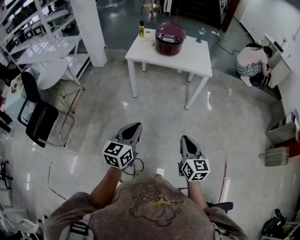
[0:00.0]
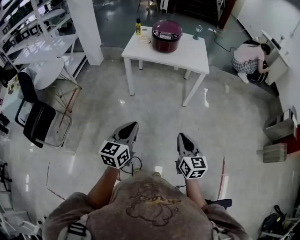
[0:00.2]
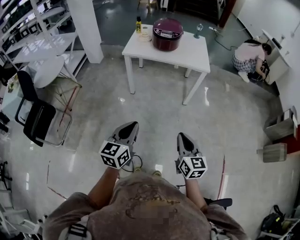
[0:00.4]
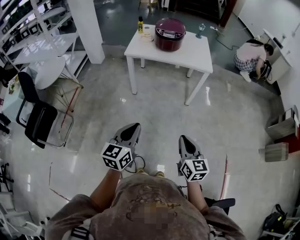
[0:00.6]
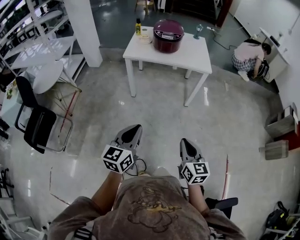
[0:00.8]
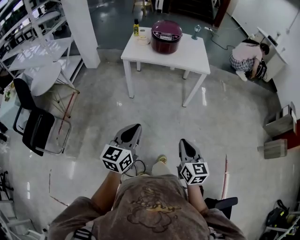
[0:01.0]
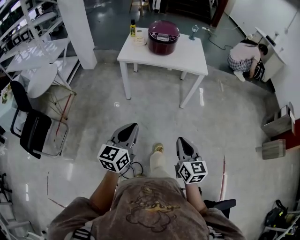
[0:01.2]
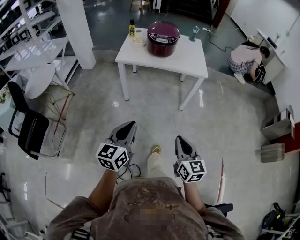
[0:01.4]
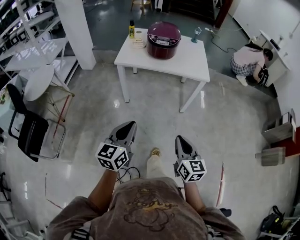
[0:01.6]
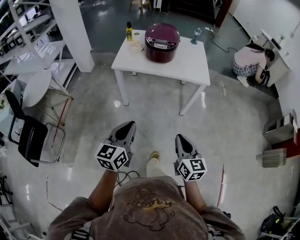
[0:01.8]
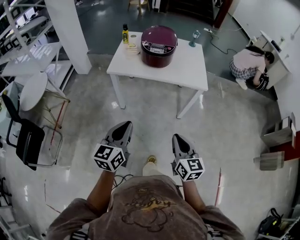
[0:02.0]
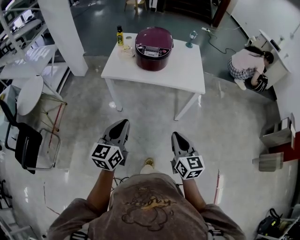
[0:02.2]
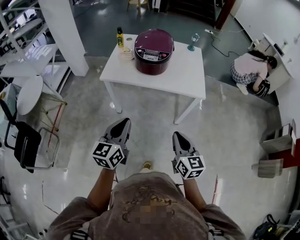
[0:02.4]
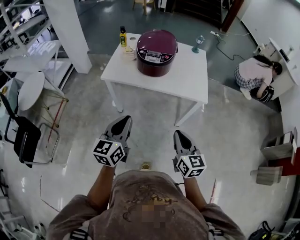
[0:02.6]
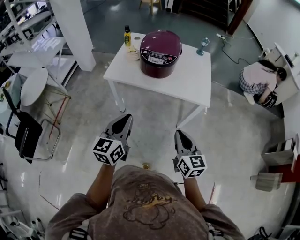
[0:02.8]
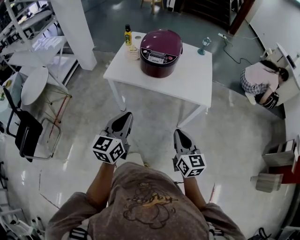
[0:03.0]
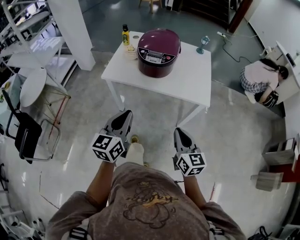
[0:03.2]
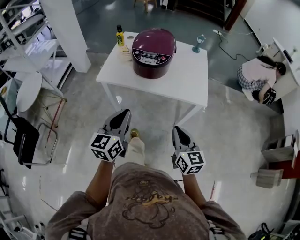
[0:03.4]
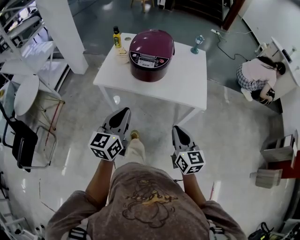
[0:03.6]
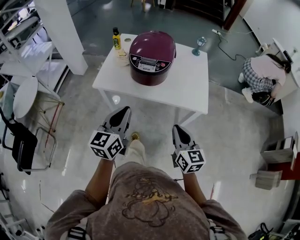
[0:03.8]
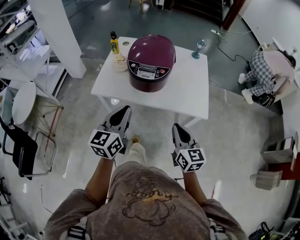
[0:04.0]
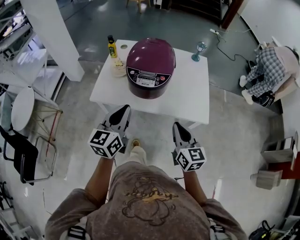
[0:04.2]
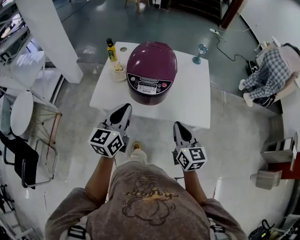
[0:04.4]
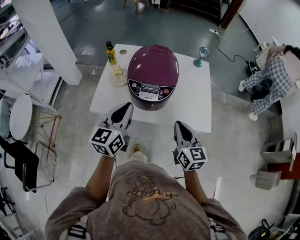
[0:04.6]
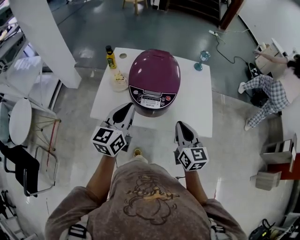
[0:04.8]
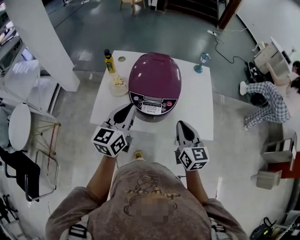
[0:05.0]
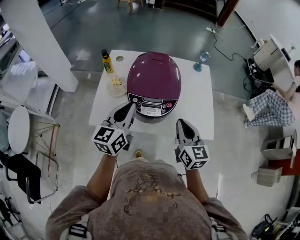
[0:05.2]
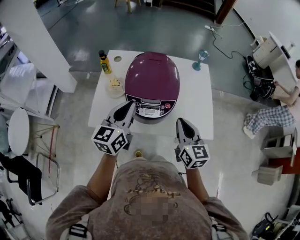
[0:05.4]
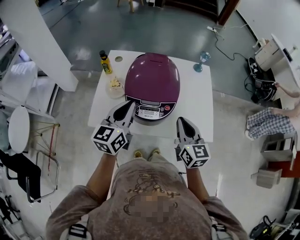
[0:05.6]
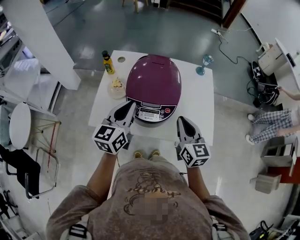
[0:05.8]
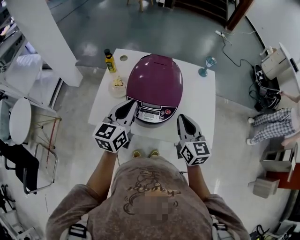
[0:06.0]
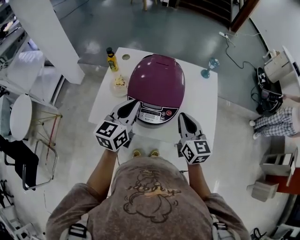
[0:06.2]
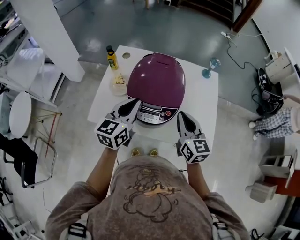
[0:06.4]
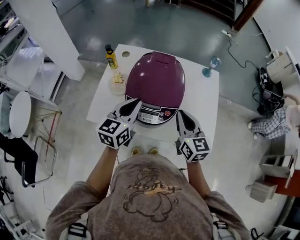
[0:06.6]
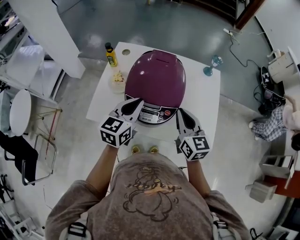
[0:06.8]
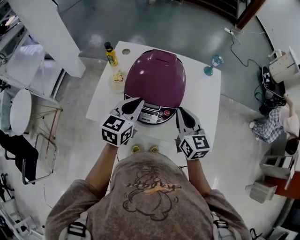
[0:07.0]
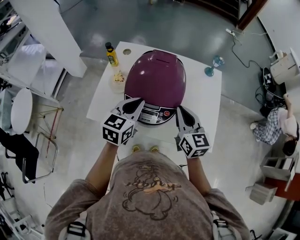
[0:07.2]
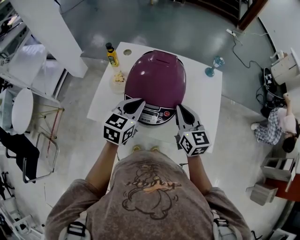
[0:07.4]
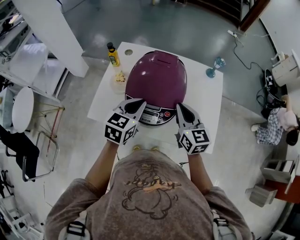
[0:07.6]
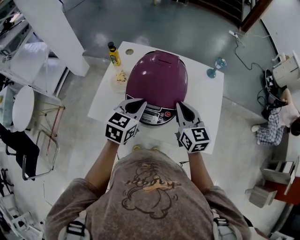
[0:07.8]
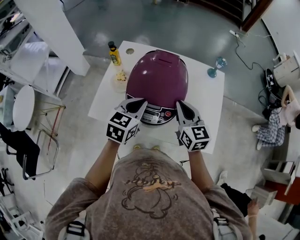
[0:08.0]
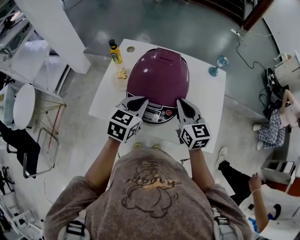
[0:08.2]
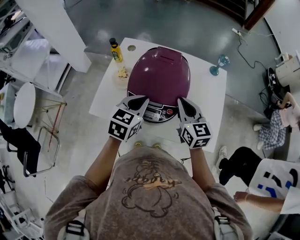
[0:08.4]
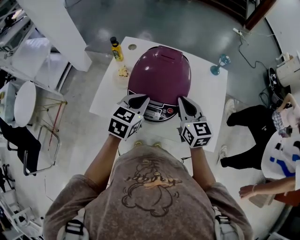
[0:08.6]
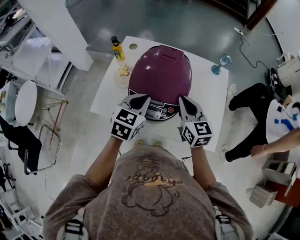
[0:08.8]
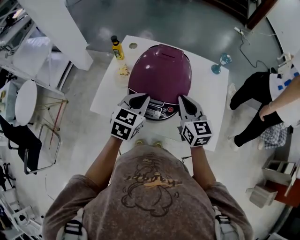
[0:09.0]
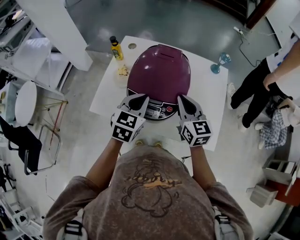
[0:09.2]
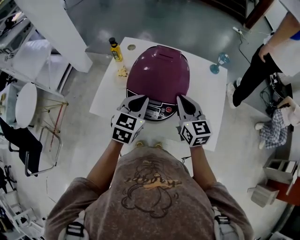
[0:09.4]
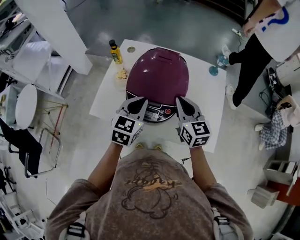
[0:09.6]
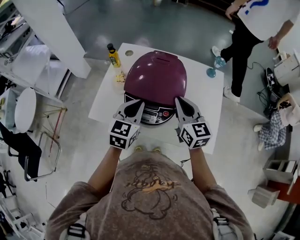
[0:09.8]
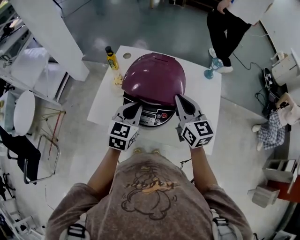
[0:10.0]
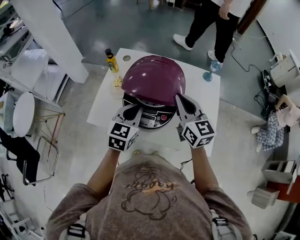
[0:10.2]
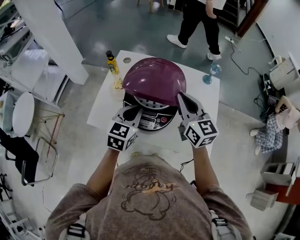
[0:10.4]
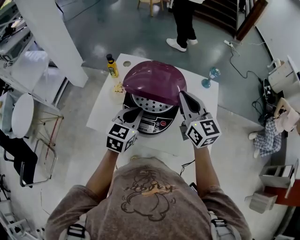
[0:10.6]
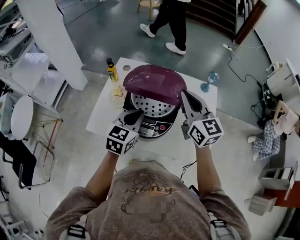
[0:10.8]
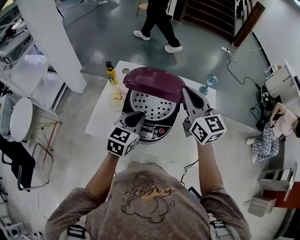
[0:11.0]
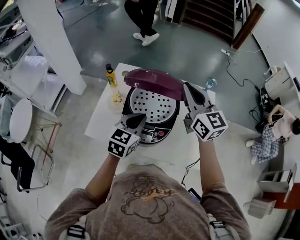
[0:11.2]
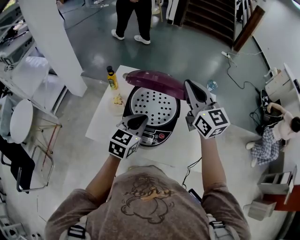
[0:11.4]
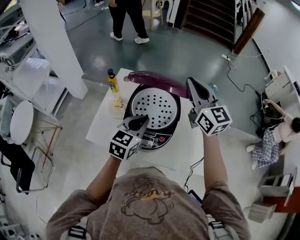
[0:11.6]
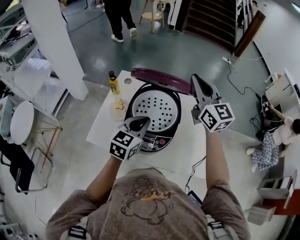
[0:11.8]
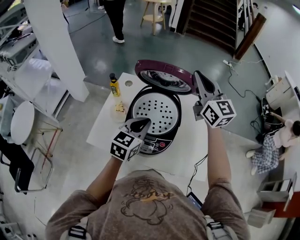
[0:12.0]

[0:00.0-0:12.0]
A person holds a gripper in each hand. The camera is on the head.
0:00.0 to 0:01.6: The grippers both shift forward by about 10 cm.
0:01.6 to 0:03.0: The two grippers go about 25 cm forward.
0:03.0 to 0:04.4: Both grippers travel together forward, approximately 25 cm.
0:04.4 to 0:06.0: Both grippers move forward, about 15 cm.
0:06.0 to 0:07.6: The right gripper goes about 5 cm forward. Meanwhile the left gripper travels downward by about 5 cm, and swivels approximately 20 degrees.
0:07.6 to 0:09.0: The grippers move only a little.
0:09.0 to 0:10.4: The right gripper moves upward, about 10 cm.
0:10.4 to 0:12.0: The left gripper changes place by approximately 5 cm. Meanwhile the right gripper shifts some 20 cm upward and forward.

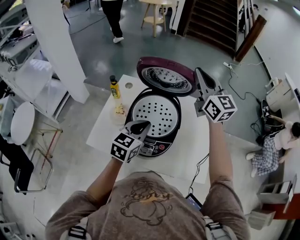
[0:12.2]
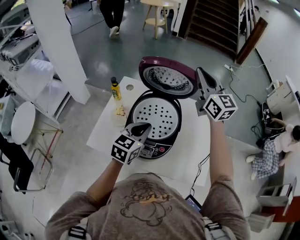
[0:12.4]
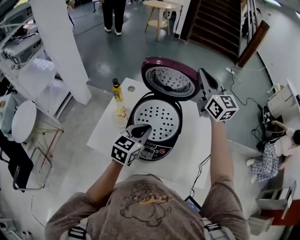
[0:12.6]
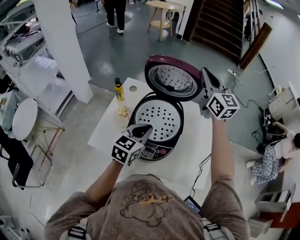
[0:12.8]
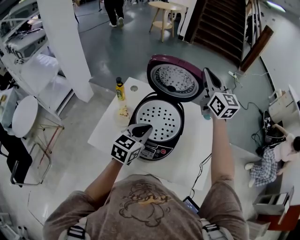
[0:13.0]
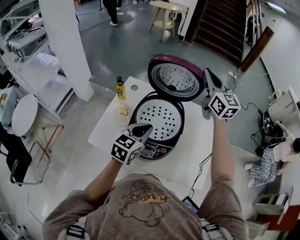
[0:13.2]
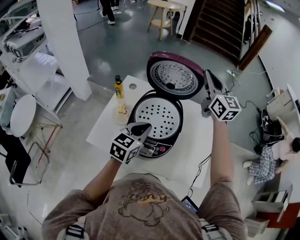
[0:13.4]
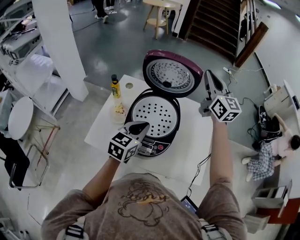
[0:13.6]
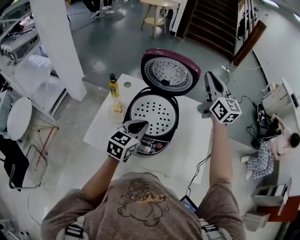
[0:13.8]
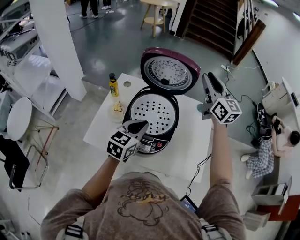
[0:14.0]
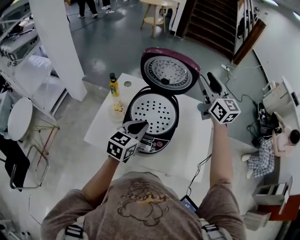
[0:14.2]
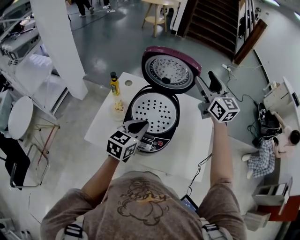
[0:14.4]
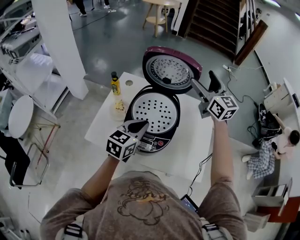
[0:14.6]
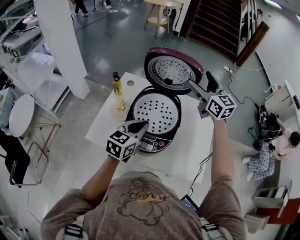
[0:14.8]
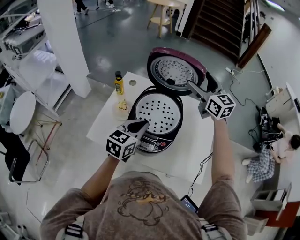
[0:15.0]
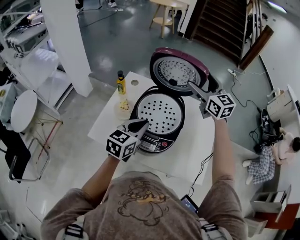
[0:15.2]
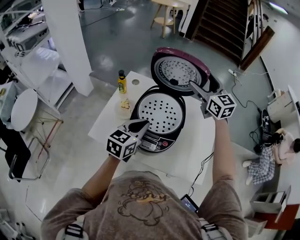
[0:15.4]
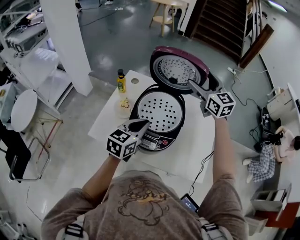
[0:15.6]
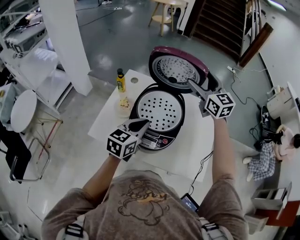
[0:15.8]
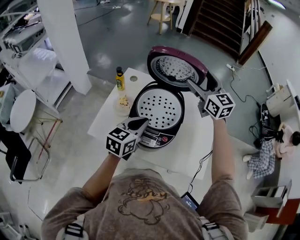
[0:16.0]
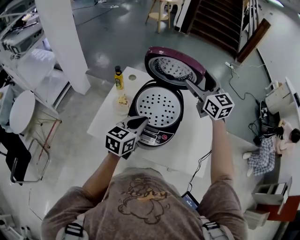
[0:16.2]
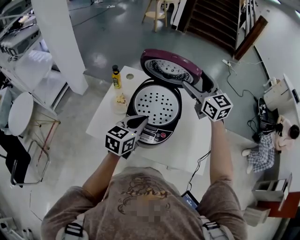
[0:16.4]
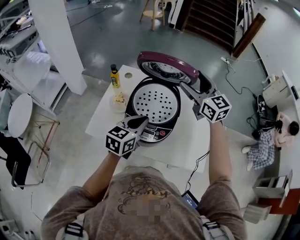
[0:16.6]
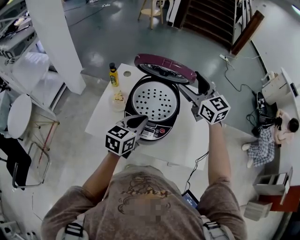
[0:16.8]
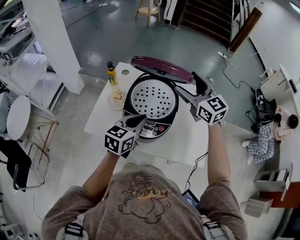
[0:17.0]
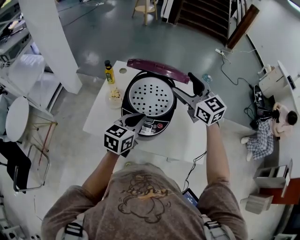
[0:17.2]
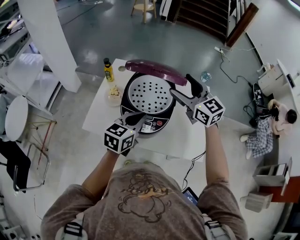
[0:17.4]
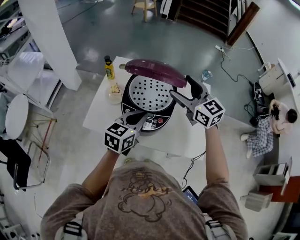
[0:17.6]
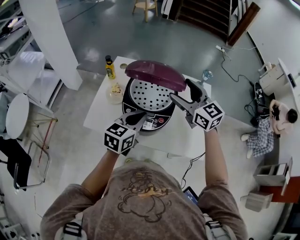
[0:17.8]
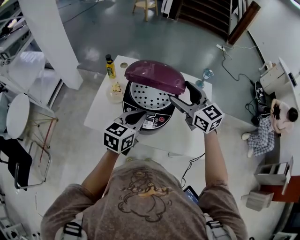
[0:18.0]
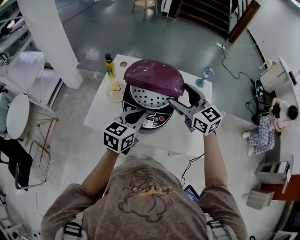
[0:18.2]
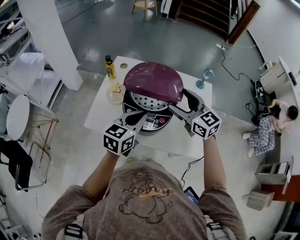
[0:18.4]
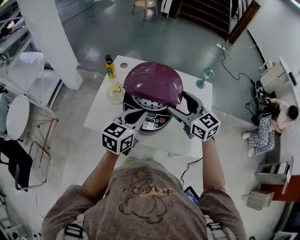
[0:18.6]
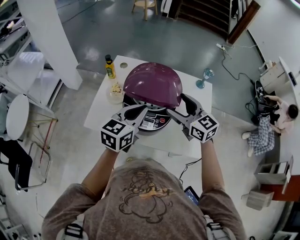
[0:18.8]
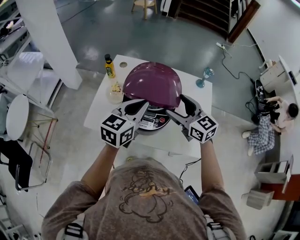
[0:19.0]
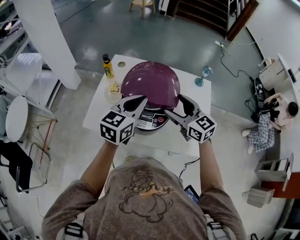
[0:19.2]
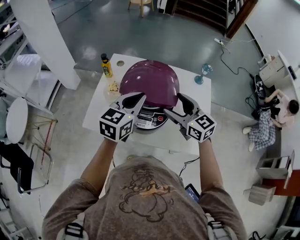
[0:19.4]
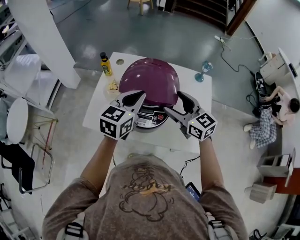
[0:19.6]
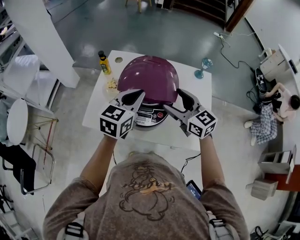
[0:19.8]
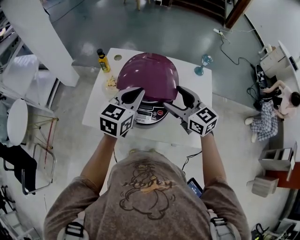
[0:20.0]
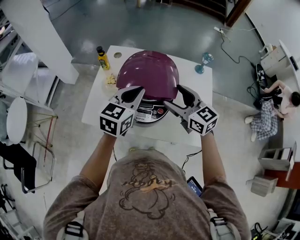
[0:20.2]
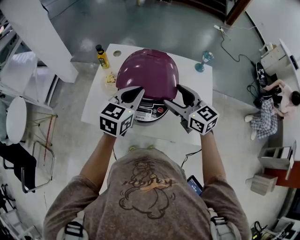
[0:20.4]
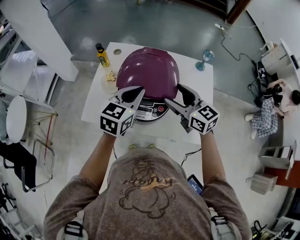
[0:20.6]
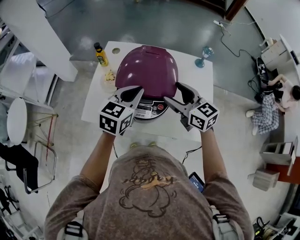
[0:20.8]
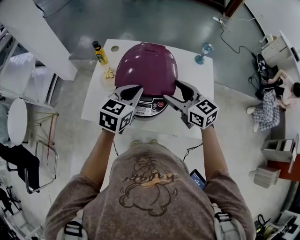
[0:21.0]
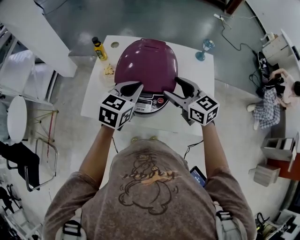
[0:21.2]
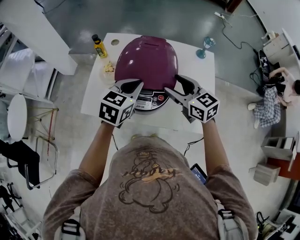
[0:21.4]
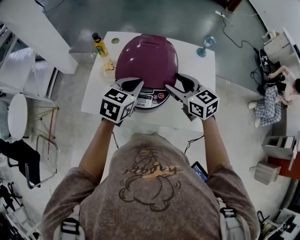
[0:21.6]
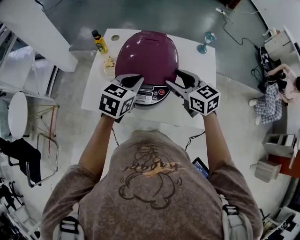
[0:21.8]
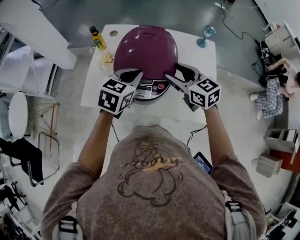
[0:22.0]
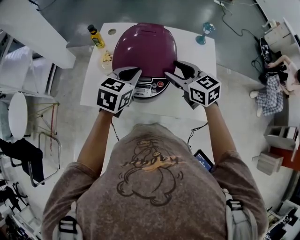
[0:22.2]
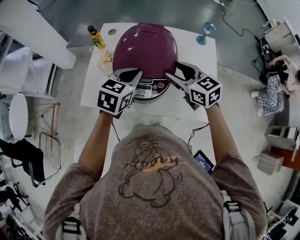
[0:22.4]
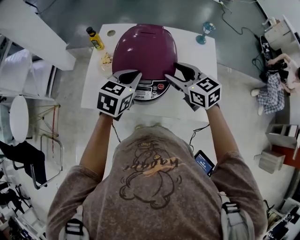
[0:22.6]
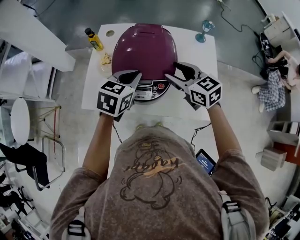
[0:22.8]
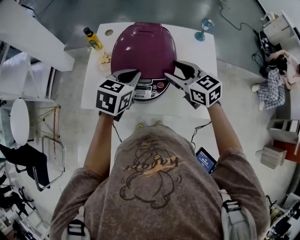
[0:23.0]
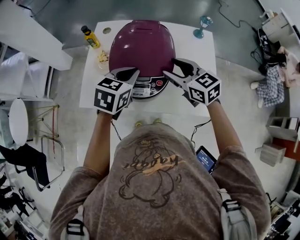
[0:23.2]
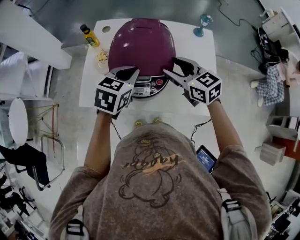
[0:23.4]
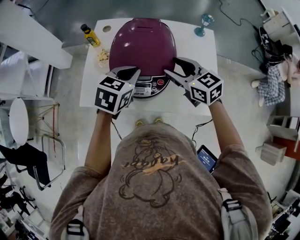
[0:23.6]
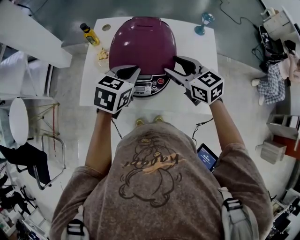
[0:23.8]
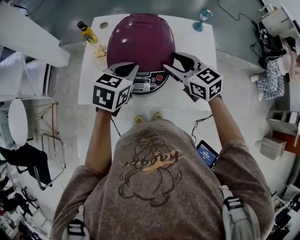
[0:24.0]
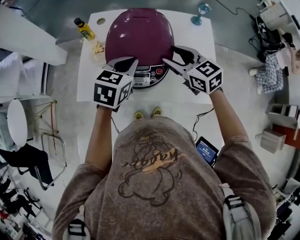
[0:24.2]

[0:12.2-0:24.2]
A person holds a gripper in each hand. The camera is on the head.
0:12.2 to 0:13.8: The right gripper is displaced to the right by some 5 cm.
0:13.8 to 0:15.2: The right gripper travels to the left and downward by roughly 10 cm, and opens its fingers.
0:15.2 to 0:16.6: The right gripper is displaced backward by about 5 cm.
0:16.6 to 0:18.2: The right gripper is displaced backward and downward by roughly 15 cm.
0:18.2 to 0:19.8: The left gripper goes some 5 cm forward; the right gripper changes place by some 5 cm.
0:19.8 to 0:21.2: The grippers move only a little.
0:21.2 to 0:22.6: There are only small adjustments of the grippers.
0:22.6 to 0:24.2: The two grippers keep their place.
